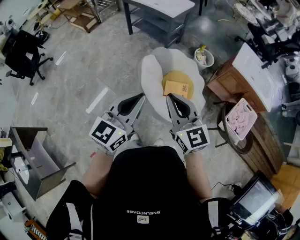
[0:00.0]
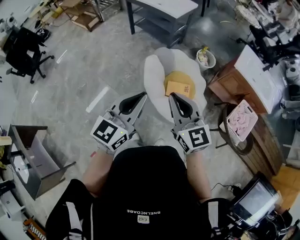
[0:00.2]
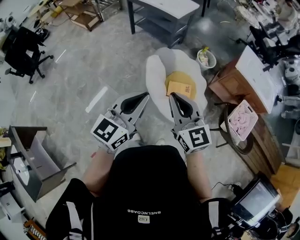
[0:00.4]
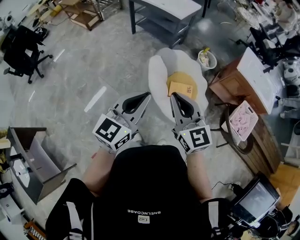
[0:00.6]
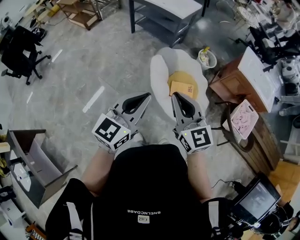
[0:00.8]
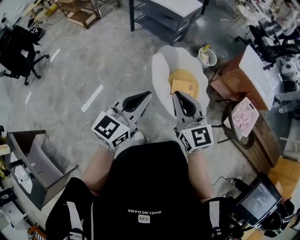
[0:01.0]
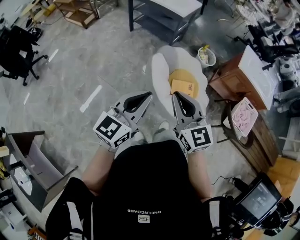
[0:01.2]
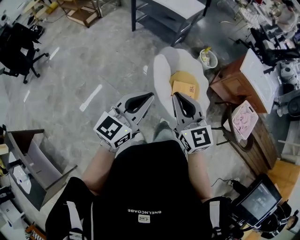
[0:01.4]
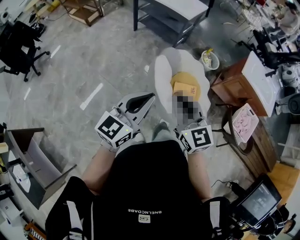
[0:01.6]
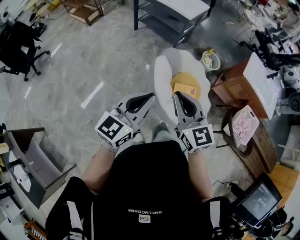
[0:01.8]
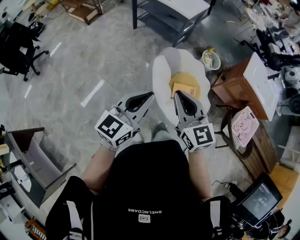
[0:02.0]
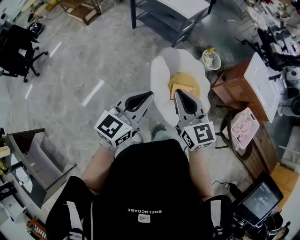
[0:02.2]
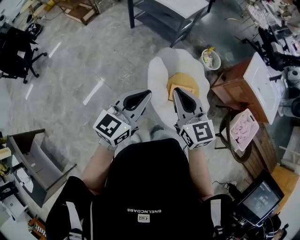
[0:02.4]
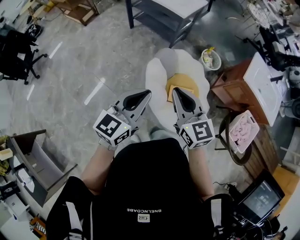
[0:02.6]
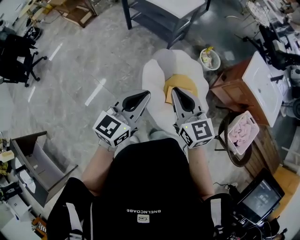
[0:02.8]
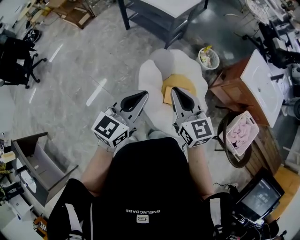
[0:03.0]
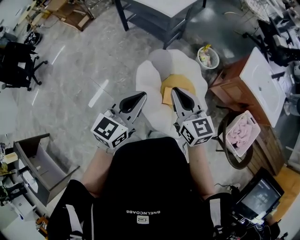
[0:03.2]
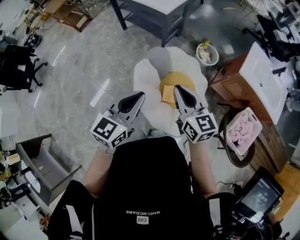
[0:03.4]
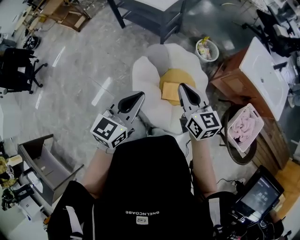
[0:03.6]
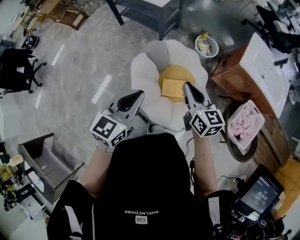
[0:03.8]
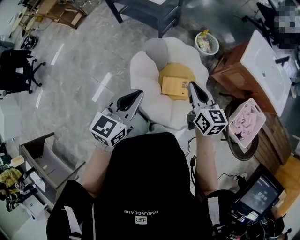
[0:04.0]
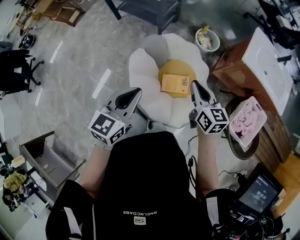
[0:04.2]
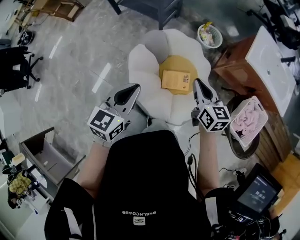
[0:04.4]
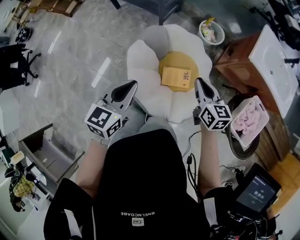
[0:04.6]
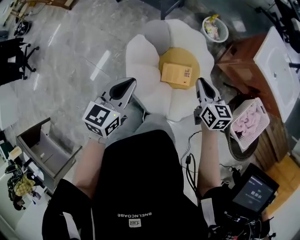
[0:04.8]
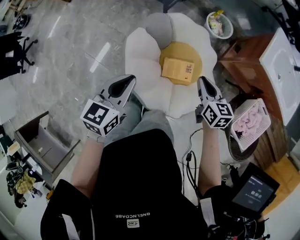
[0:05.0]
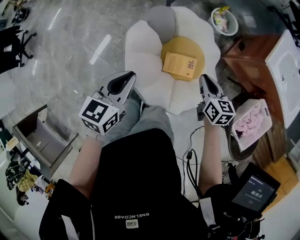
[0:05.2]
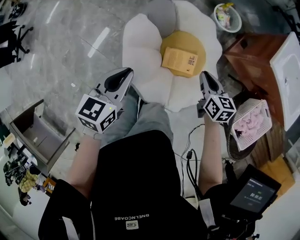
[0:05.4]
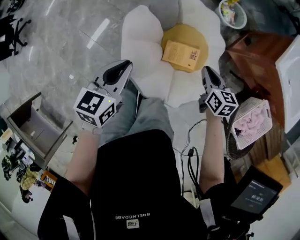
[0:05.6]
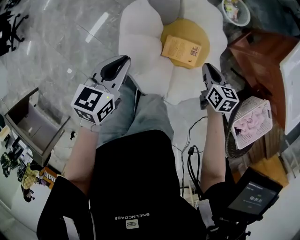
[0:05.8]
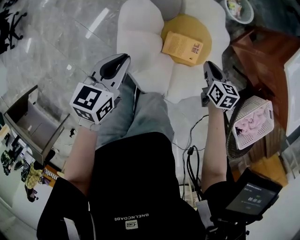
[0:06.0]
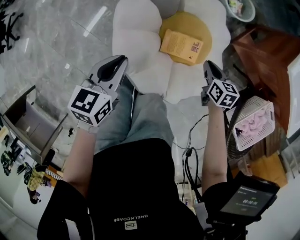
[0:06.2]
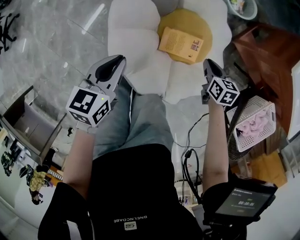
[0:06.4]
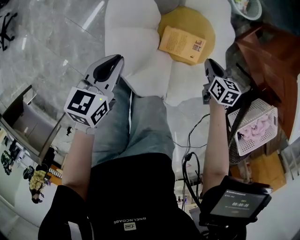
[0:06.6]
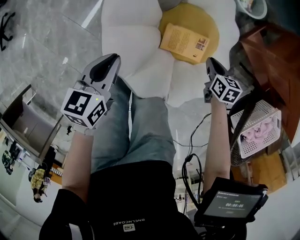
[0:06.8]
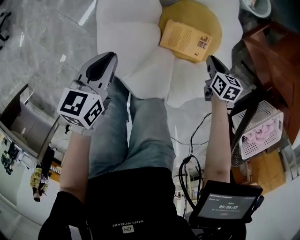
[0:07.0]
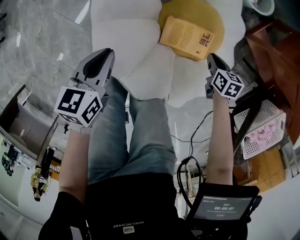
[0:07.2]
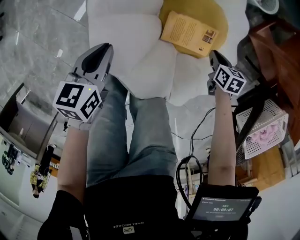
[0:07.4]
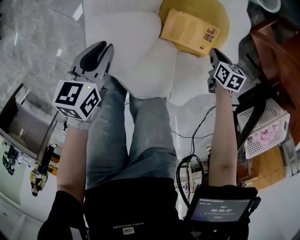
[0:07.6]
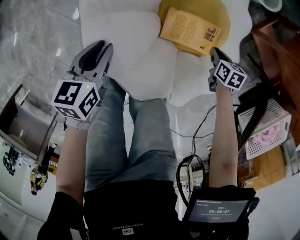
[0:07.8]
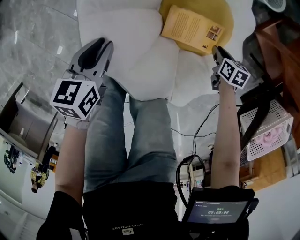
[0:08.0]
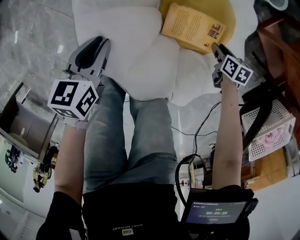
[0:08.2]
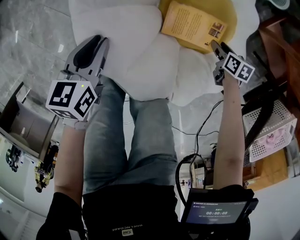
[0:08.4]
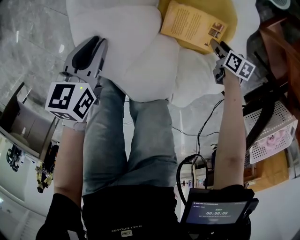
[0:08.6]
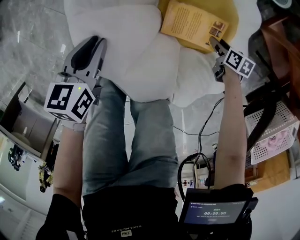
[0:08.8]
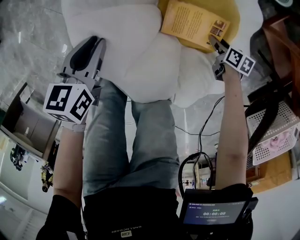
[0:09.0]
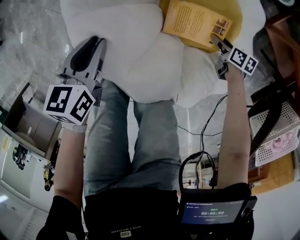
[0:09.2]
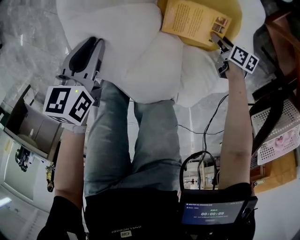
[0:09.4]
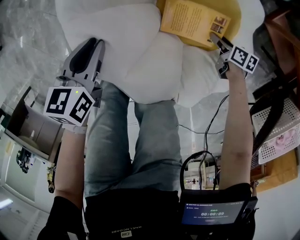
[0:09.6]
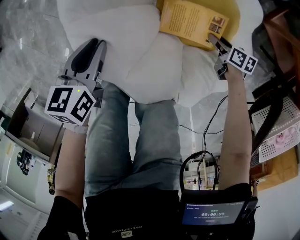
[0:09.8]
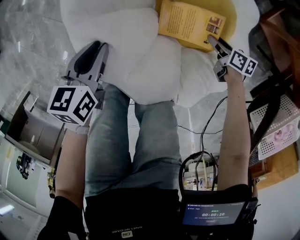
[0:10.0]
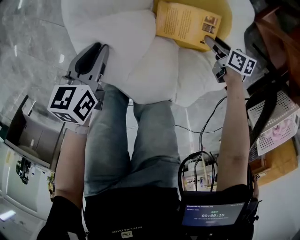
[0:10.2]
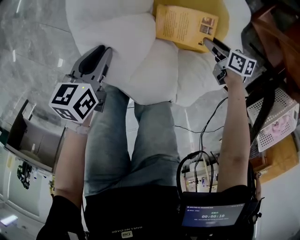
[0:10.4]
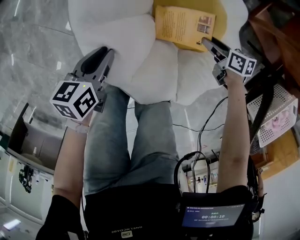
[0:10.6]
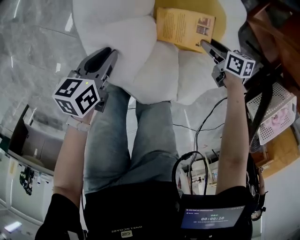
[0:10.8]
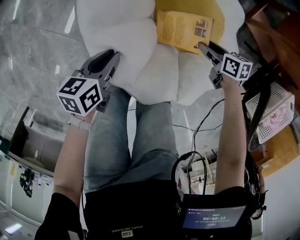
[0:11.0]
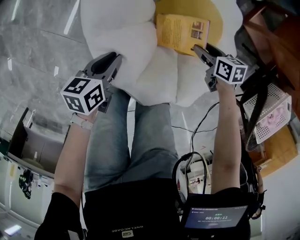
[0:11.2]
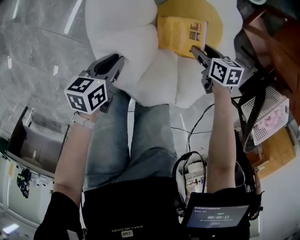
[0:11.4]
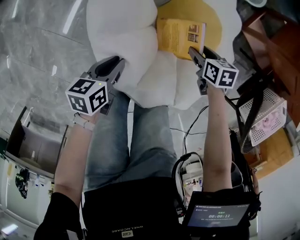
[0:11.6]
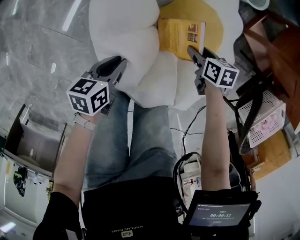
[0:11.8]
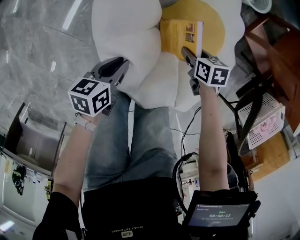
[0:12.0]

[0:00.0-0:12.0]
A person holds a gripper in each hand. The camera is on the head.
0:00.0 to 0:01.6: The grippers both shift to the left by roughly 15 cm.
0:01.6 to 0:03.0: The grippers both shift forward and to the right by some 25 cm.
0:03.0 to 0:04.4: The left gripper shifts about 15 cm downward, to the right and forward; the right gripper heads to the right and downward, covering roughly 25 cm, and swivels about 20 degrees.
0:04.4 to 0:06.0: Both grippers travel together downward, roughly 30 cm. The right gripper rotates some 30 degrees, while the left gripper rotates some 20 degrees.
0:06.0 to 0:07.6: The grippers both shift downward by approximately 25 cm.
0:07.6 to 0:09.0: The right gripper travels downward by some 10 cm, and opens up.
0:09.0 to 0:10.4: The right gripper moves upward, roughly 10 cm.
0:10.4 to 0:12.0: The right gripper heads to the left and upward, covering some 15 cm.

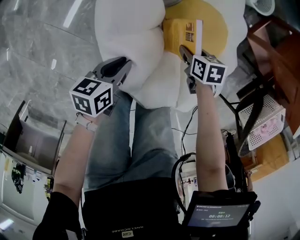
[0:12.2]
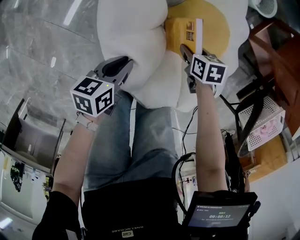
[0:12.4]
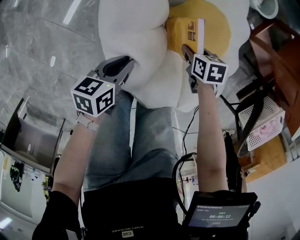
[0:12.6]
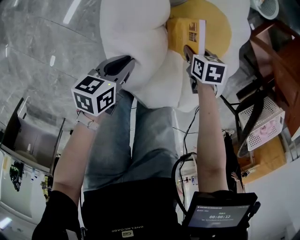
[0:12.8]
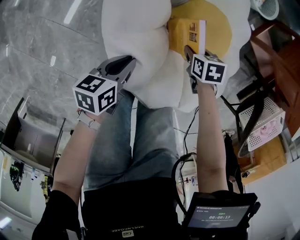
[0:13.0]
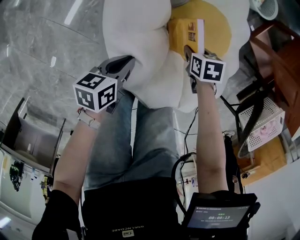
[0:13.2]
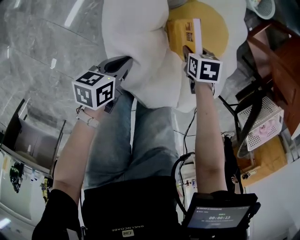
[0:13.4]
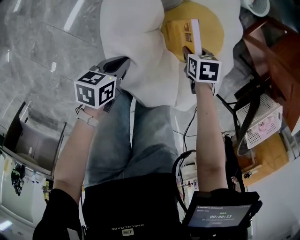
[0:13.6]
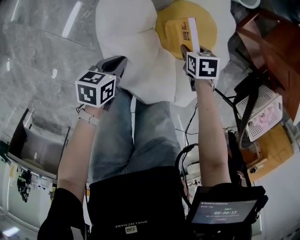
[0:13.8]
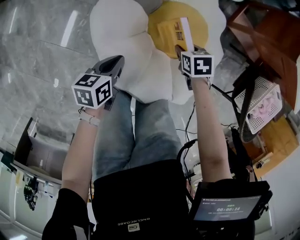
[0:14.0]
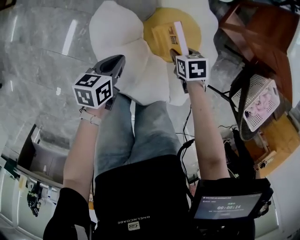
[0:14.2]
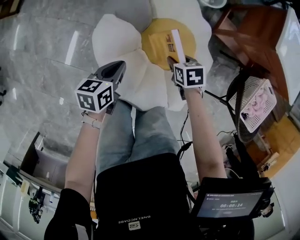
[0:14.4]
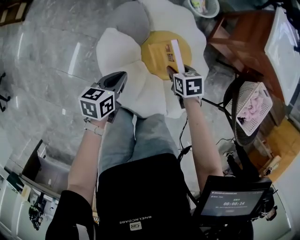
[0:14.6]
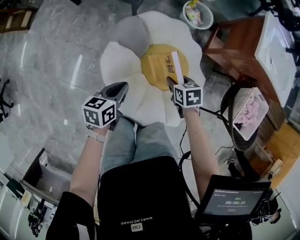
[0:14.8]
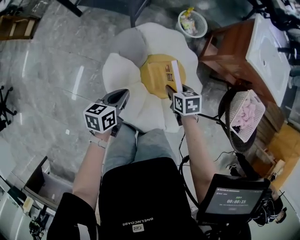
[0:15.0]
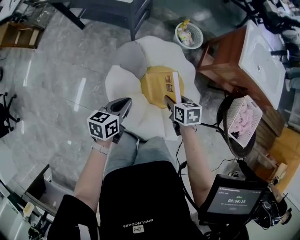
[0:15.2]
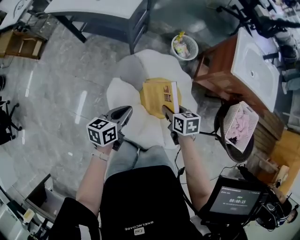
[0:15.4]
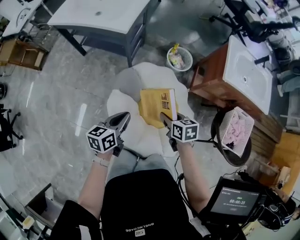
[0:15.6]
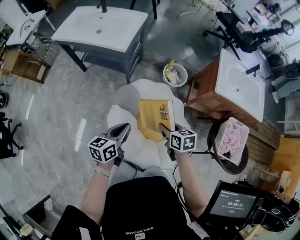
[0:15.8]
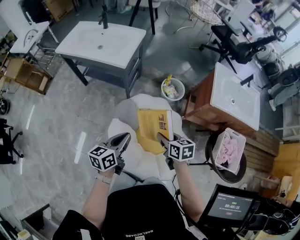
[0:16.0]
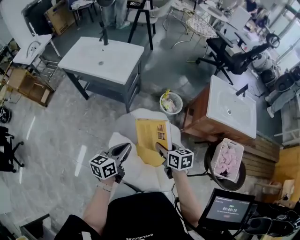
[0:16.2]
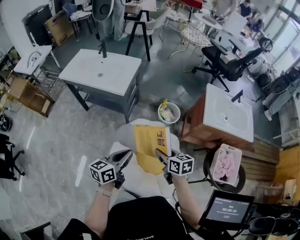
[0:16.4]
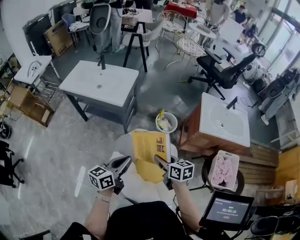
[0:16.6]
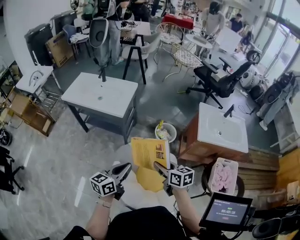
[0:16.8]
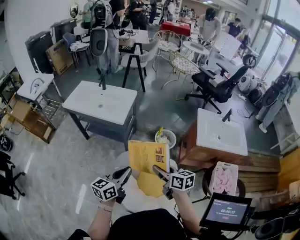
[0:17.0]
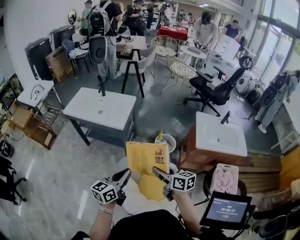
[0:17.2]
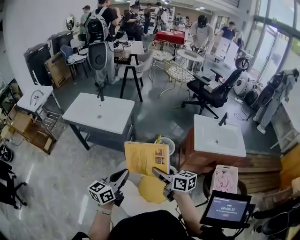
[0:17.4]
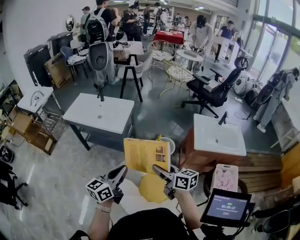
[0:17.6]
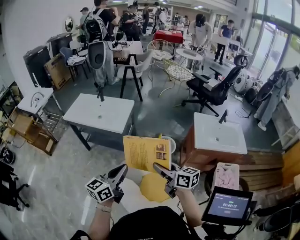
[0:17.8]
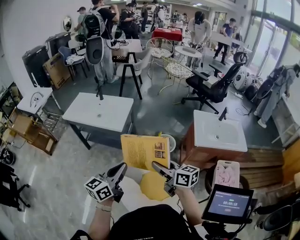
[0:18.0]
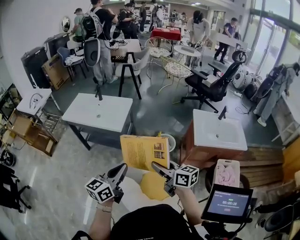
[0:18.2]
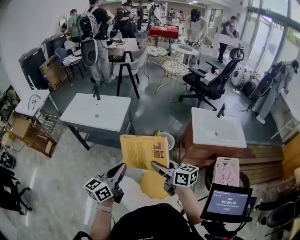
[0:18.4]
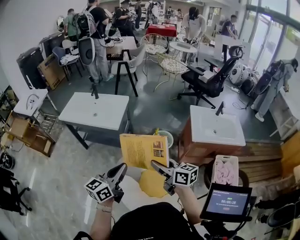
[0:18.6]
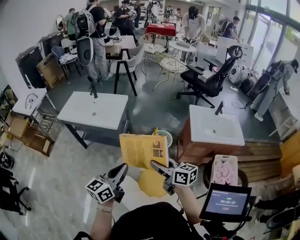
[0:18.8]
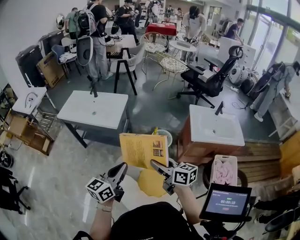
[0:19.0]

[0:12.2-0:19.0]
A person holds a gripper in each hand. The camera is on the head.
0:12.2 to 0:13.6: The grippers move only a little.
0:13.6 to 0:15.0: Both grippers travel together upward, some 25 cm. The right gripper rotates some 20 degrees.
0:15.0 to 0:16.2: The two grippers go approximately 25 cm upward. The right gripper turns by approximately 20 degrees; the left gripper turns by about 20 degrees.
0:16.2 to 0:17.6: Both grippers move upward, roughly 20 cm. The left gripper swivels approximately 20 degrees. The right gripper swivels some 30 degrees.
0:17.6 to 0:19.0: The grippers make only small movements.

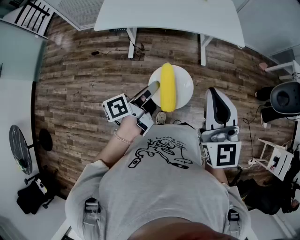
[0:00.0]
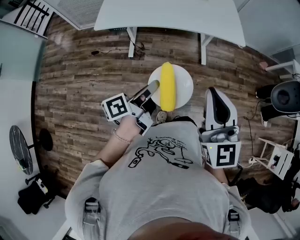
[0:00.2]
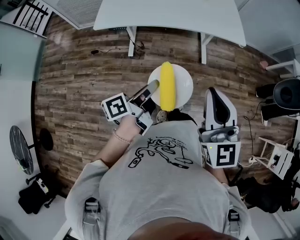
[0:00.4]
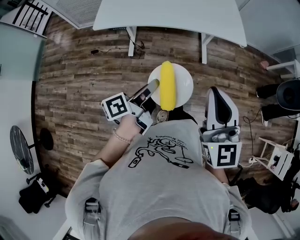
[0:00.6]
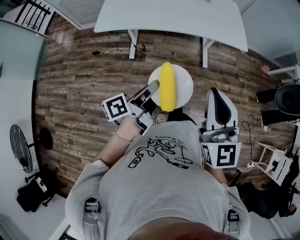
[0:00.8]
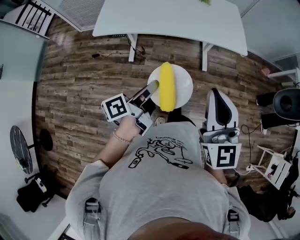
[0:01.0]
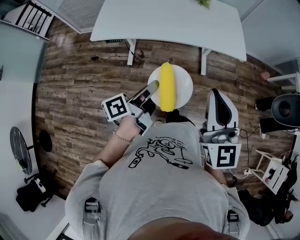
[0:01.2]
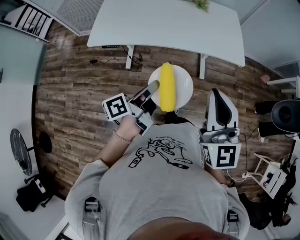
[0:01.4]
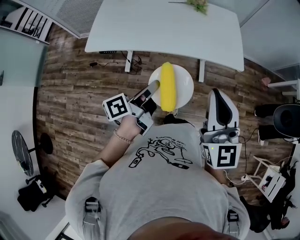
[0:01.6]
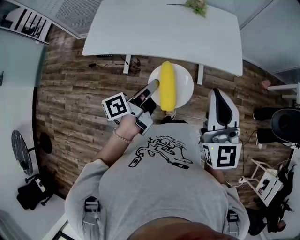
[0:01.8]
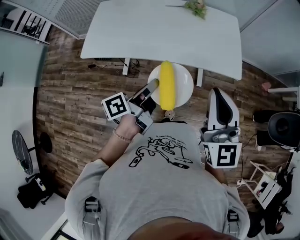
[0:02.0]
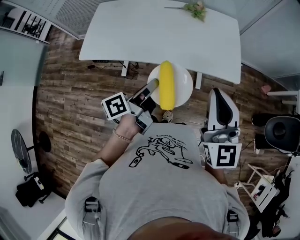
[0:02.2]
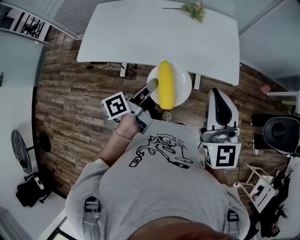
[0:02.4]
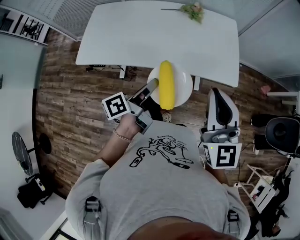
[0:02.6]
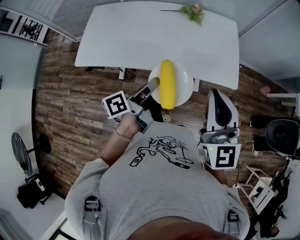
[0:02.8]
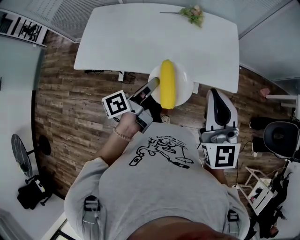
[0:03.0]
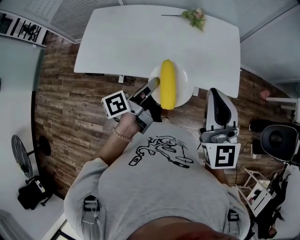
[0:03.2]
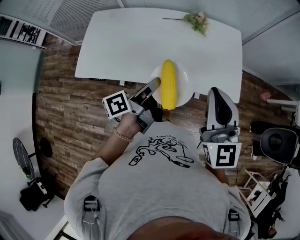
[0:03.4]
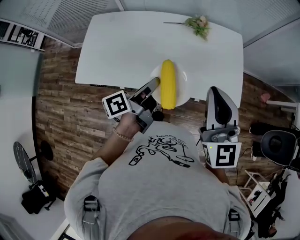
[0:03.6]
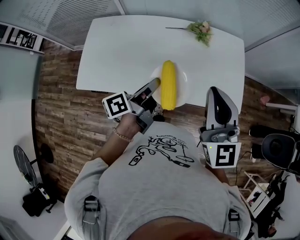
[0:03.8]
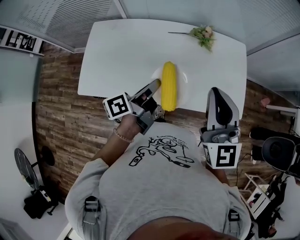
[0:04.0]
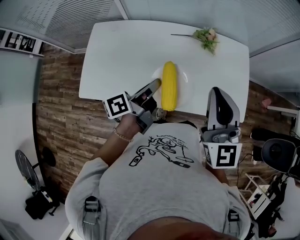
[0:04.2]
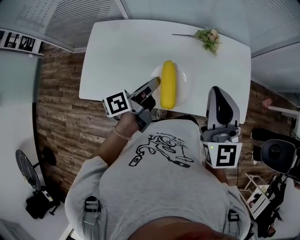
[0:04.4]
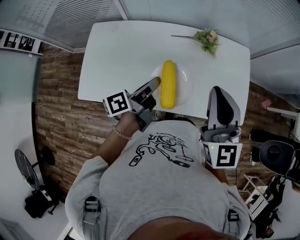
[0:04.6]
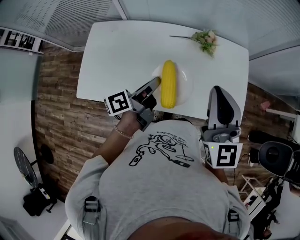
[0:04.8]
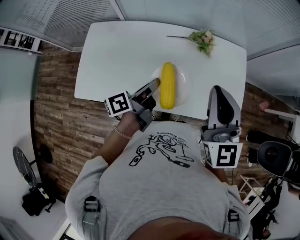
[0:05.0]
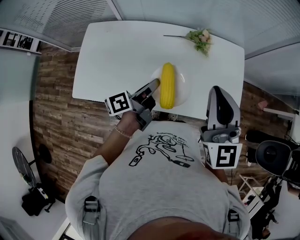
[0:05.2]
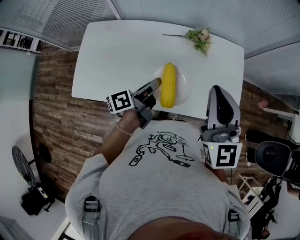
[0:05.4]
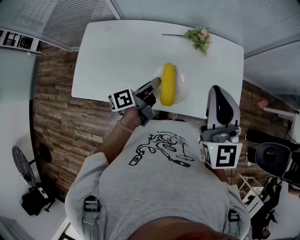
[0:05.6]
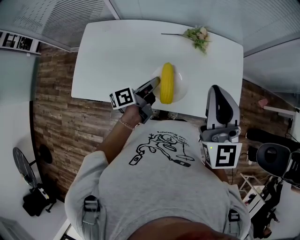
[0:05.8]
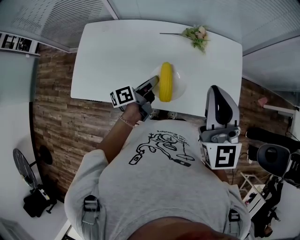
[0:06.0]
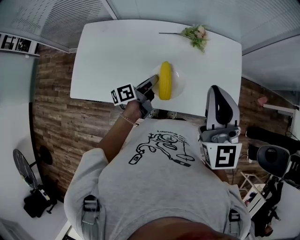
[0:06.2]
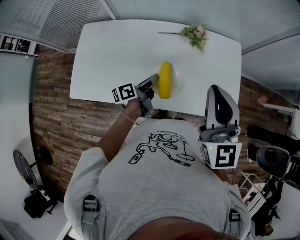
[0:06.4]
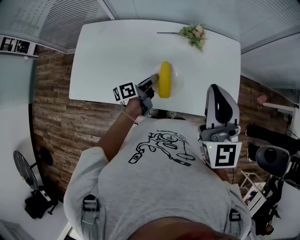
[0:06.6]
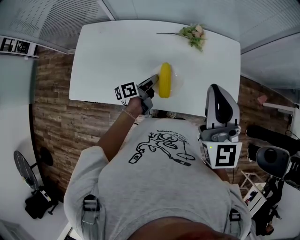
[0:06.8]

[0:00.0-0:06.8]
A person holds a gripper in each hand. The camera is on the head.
0:00.0 to 0:01.4: Both grippers travel together forward, about 15 cm.
0:01.4 to 0:02.8: The grippers both shift forward by some 20 cm.
0:02.8 to 0:04.0: The grippers both shift forward and to the left by about 20 cm.
0:04.0 to 0:05.4: The grippers both shift forward by roughly 5 cm.
0:05.4 to 0:06.8: The left gripper heads downward, covering approximately 10 cm.
